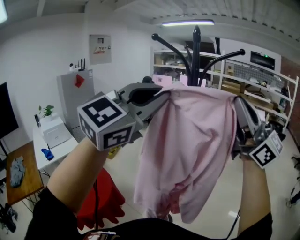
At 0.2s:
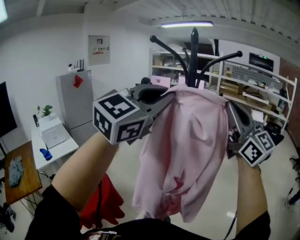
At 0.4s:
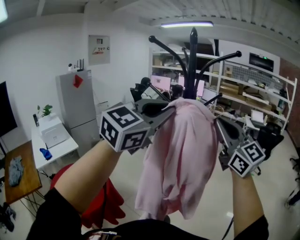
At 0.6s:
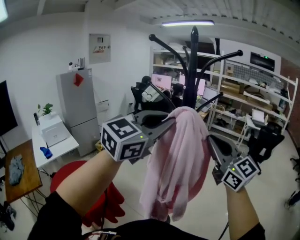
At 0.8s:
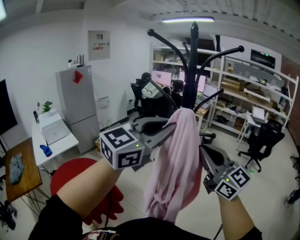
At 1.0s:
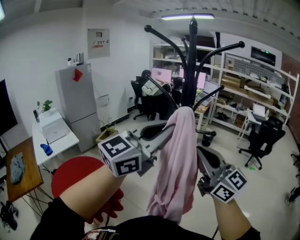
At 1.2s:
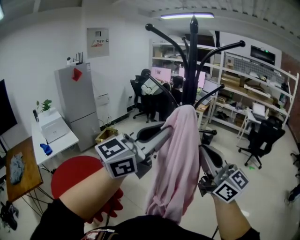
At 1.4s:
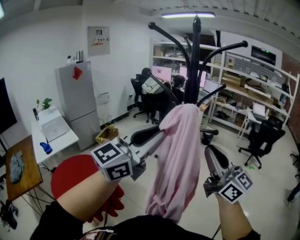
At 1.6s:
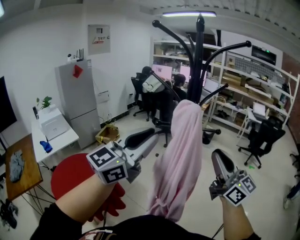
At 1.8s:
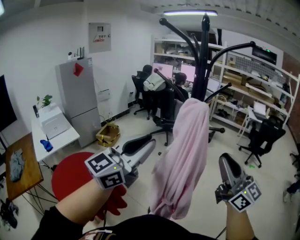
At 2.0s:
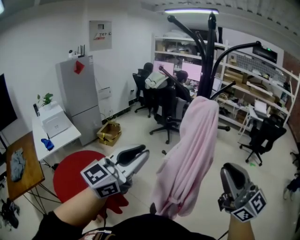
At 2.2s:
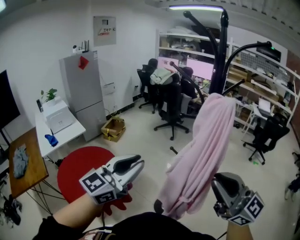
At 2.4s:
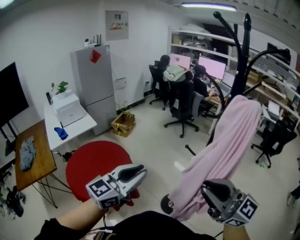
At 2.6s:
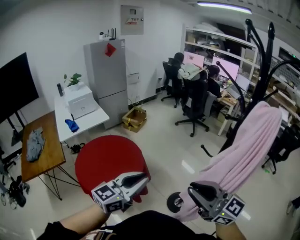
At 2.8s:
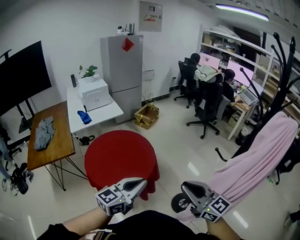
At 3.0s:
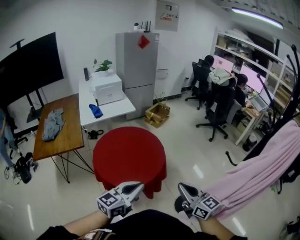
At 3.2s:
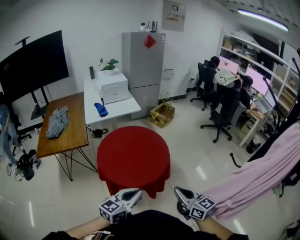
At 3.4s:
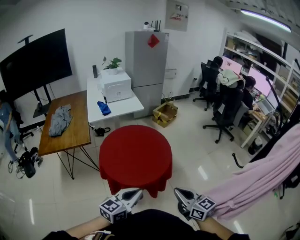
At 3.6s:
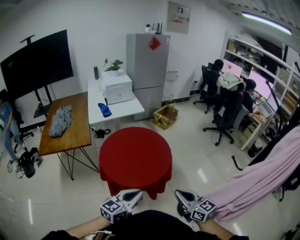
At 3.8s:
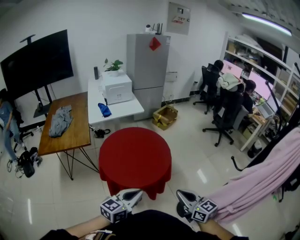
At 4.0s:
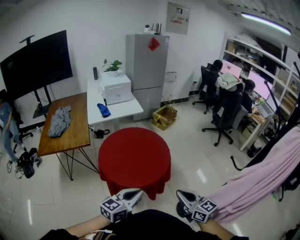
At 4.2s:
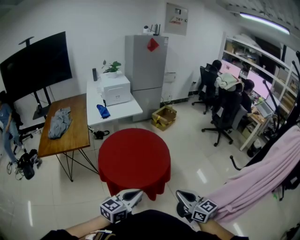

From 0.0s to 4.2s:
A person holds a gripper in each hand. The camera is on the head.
From 0.0s to 1.4s: Both grippers move downward, approximately 15 cm. The right gripper turns by some 20 degrees. The left gripper swivels about 30 degrees.
From 1.4s to 2.8s: The left gripper changes place by some 40 cm, and swivels approximately 40 degrees; the right gripper moves approximately 40 cm, and rotates roughly 40 degrees.
From 2.8s to 4.2s: The grippers both shift downward and to the left by approximately 10 cm.

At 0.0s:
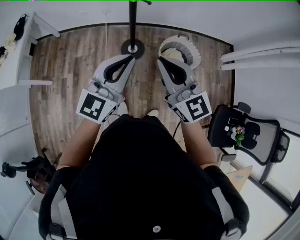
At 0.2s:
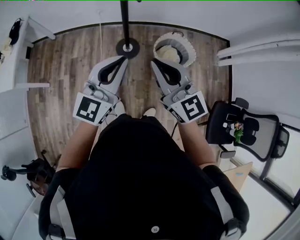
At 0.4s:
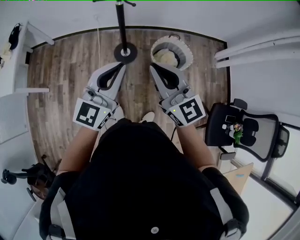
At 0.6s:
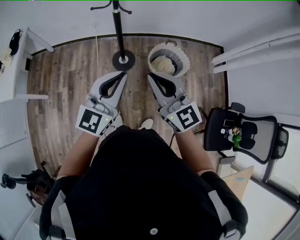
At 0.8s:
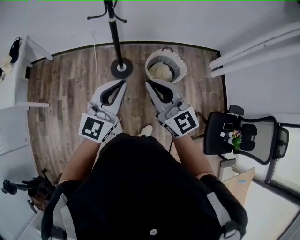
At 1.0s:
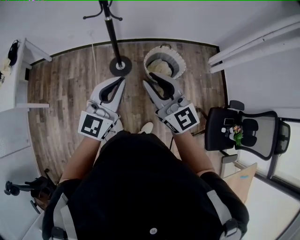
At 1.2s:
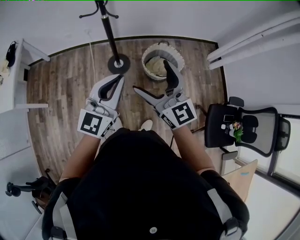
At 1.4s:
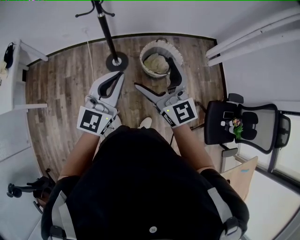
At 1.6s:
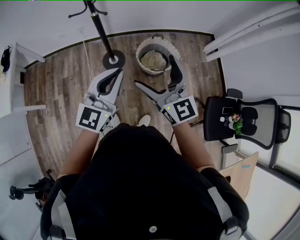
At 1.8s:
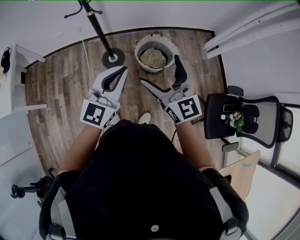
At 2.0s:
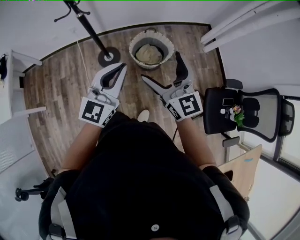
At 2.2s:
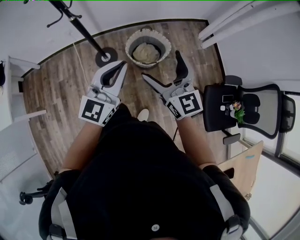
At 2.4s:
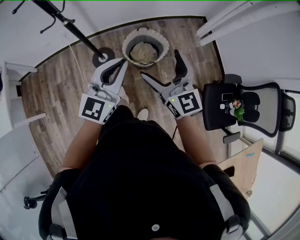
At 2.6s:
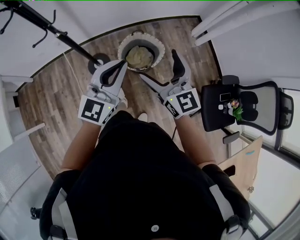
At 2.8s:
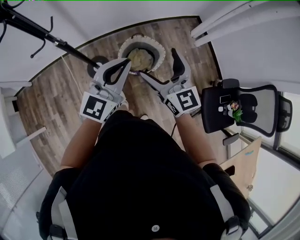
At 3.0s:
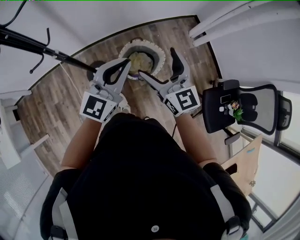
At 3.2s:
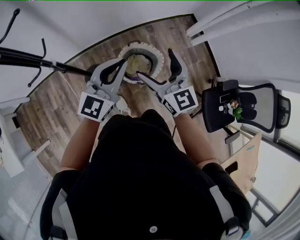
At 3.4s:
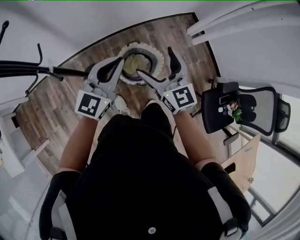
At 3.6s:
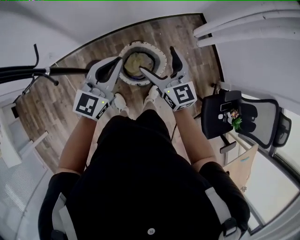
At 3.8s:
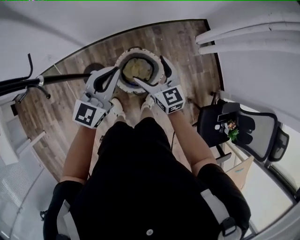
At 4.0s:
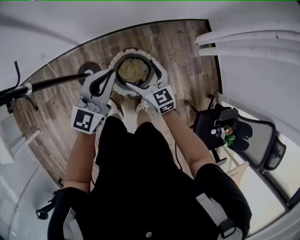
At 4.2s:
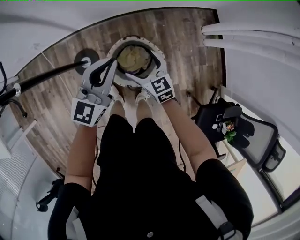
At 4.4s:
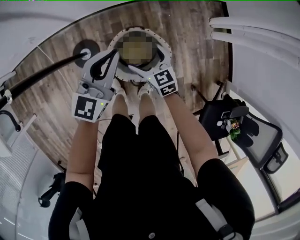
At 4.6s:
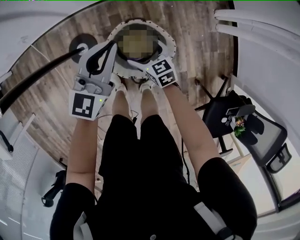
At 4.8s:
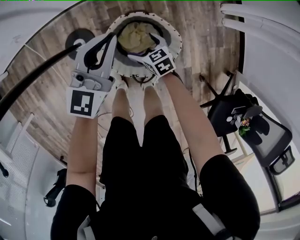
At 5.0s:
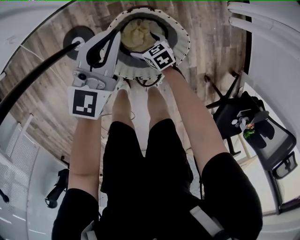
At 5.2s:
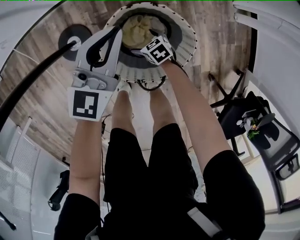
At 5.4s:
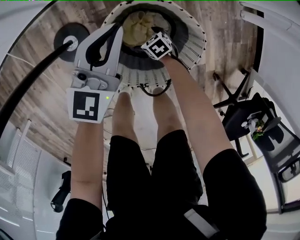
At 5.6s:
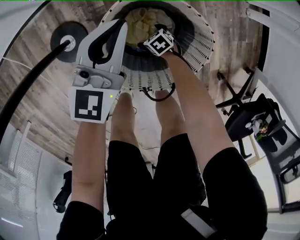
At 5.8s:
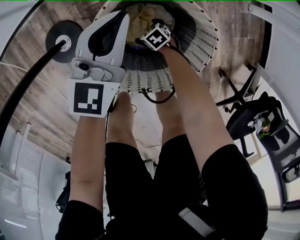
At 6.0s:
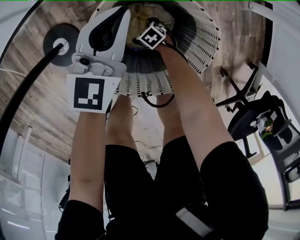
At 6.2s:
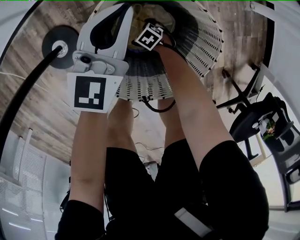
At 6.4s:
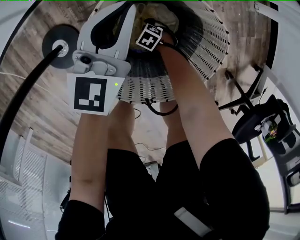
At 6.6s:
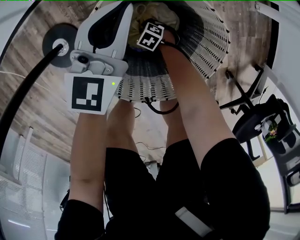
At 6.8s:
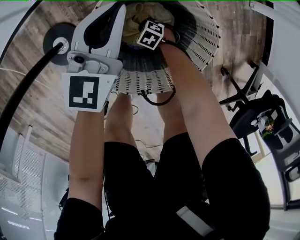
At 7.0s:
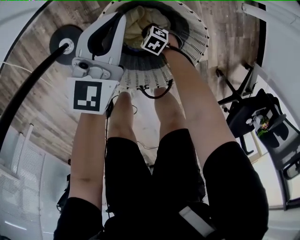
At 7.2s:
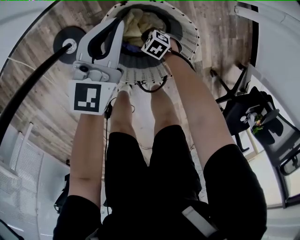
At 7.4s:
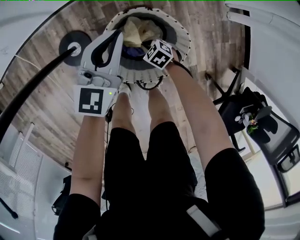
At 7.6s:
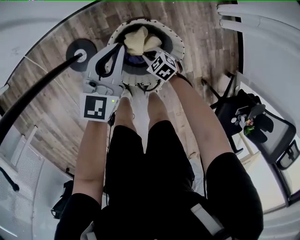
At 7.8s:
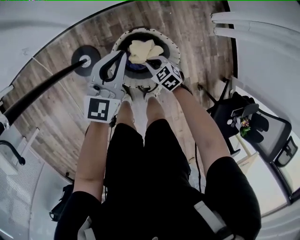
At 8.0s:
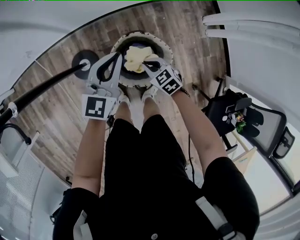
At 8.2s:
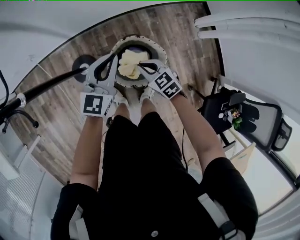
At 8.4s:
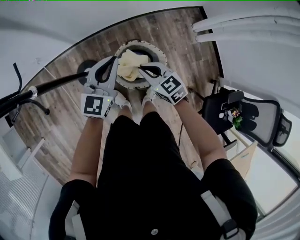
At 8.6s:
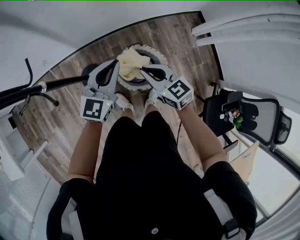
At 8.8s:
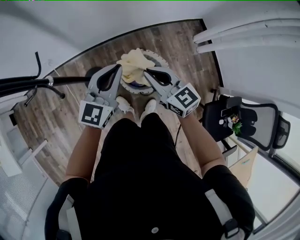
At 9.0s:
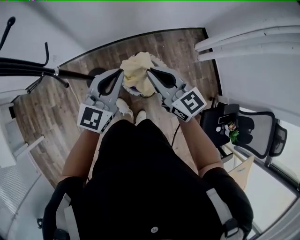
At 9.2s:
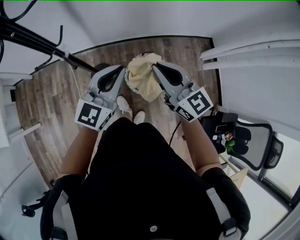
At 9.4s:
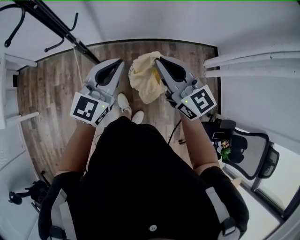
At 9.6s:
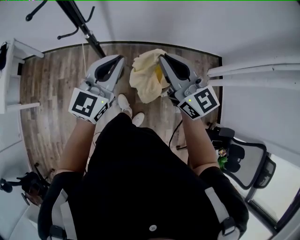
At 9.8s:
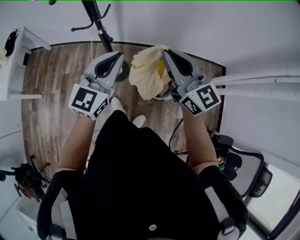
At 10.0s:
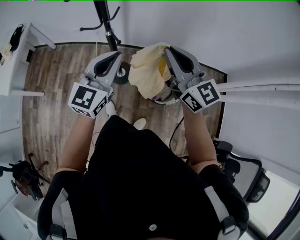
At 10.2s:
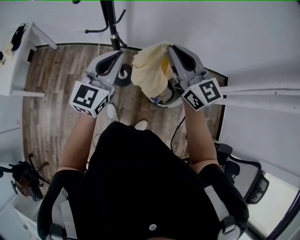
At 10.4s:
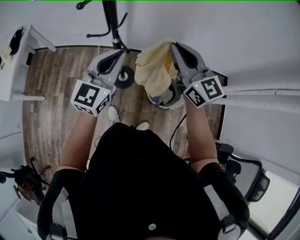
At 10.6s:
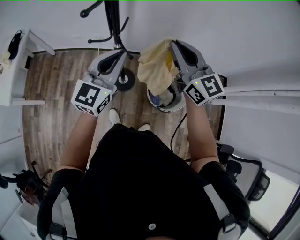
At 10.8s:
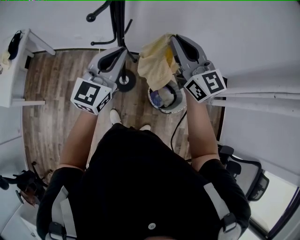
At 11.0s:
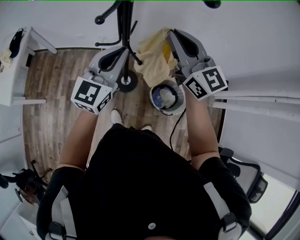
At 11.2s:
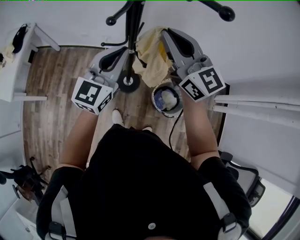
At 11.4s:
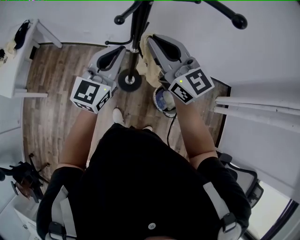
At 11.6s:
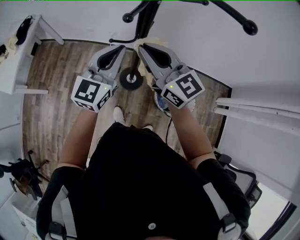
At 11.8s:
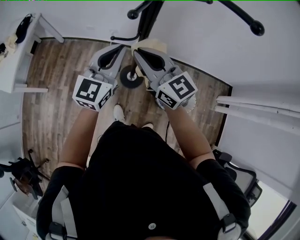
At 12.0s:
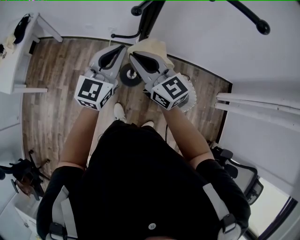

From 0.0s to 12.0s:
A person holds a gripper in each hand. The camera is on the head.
From 0.0s to 1.6s: The grippers both shift to the right by roughly 15 cm. The right gripper opens its fingers.
From 1.6s to 3.0s: The right gripper is displaced forward by approximately 25 cm. The left gripper moves forward and to the right, some 30 cm.
From 3.0s to 4.4s: Both grippers move downward and forward, roughly 40 cm. The right gripper turns by about 40 degrees.
From 4.4s to 6.0s: Both grippers move downward, about 50 cm. The right gripper tilts its fingers roughly 30 degrees downward.
From 6.0s to 7.6s: Both grippers travel together upward, about 30 cm. The right gripper closes its fingers.
From 7.6s to 9.0s: The left gripper moves upward, approximately 40 cm. Meanwhile the right gripper goes roughly 70 cm upward, and angles its fingers upward, by some 50 degrees.
From 9.0s to 10.4s: The two grippers go roughly 25 cm to the left and upward. The left gripper rotates about 30 degrees.
From 10.4s to 12.0s: The right gripper travels to the left by about 25 cm, while the left gripper is displaced to the left and forward by roughly 15 cm.

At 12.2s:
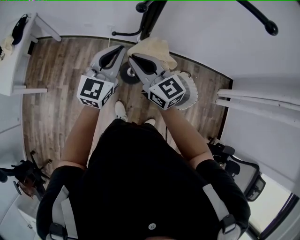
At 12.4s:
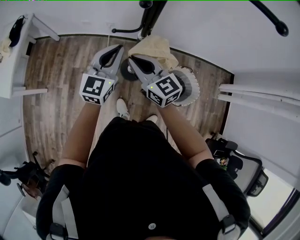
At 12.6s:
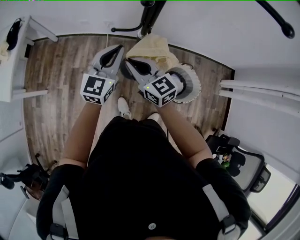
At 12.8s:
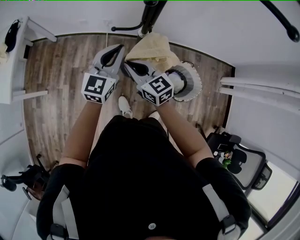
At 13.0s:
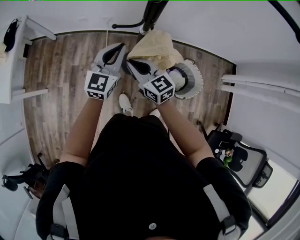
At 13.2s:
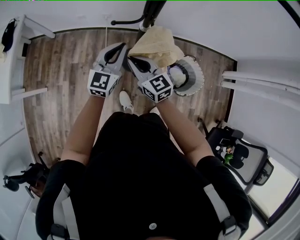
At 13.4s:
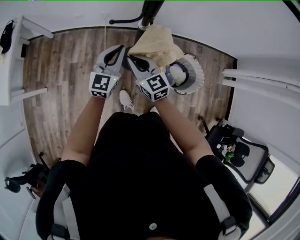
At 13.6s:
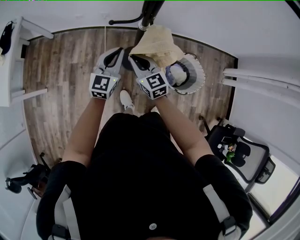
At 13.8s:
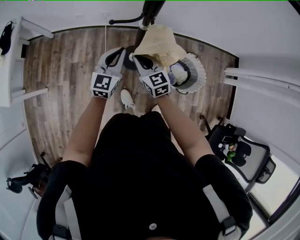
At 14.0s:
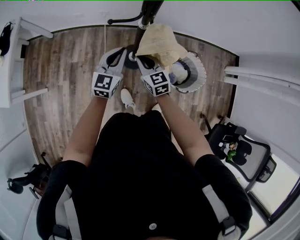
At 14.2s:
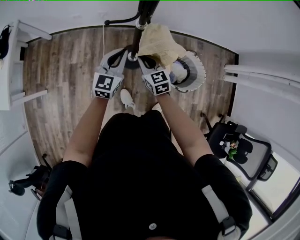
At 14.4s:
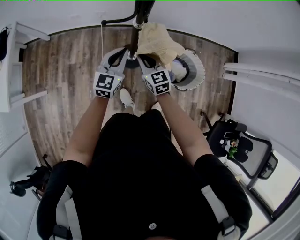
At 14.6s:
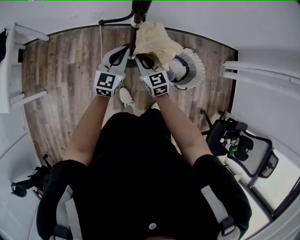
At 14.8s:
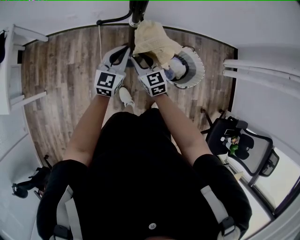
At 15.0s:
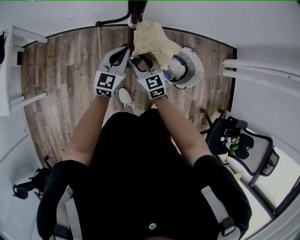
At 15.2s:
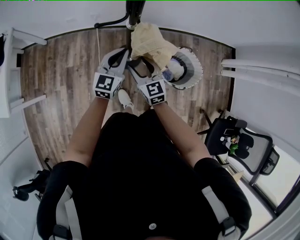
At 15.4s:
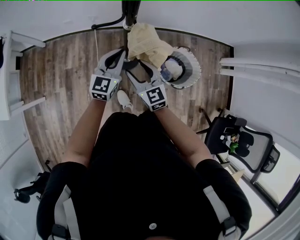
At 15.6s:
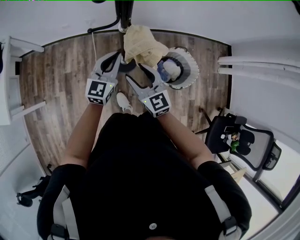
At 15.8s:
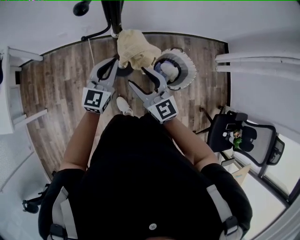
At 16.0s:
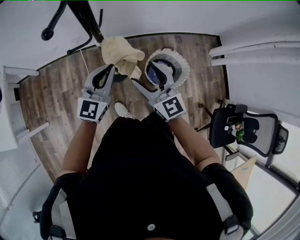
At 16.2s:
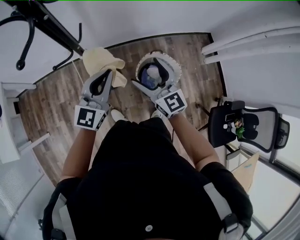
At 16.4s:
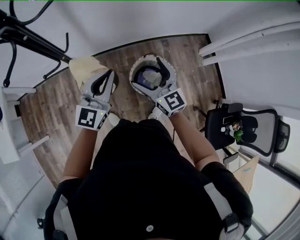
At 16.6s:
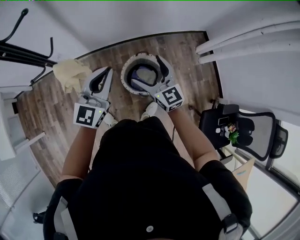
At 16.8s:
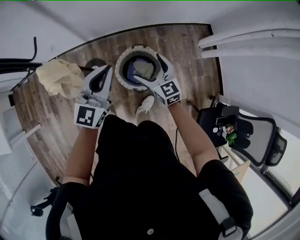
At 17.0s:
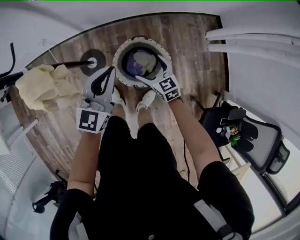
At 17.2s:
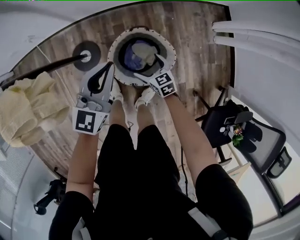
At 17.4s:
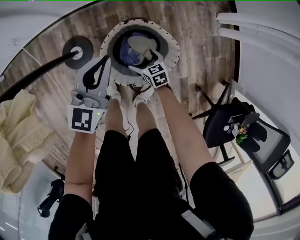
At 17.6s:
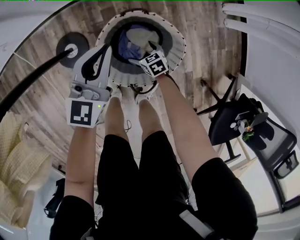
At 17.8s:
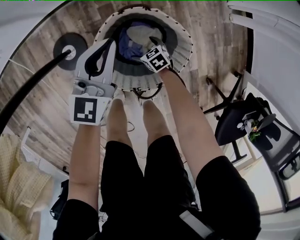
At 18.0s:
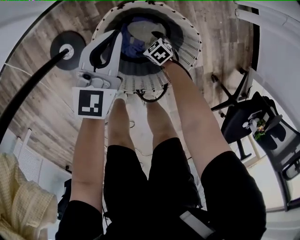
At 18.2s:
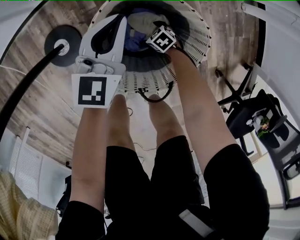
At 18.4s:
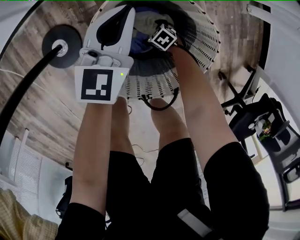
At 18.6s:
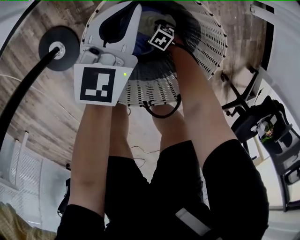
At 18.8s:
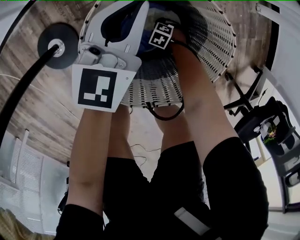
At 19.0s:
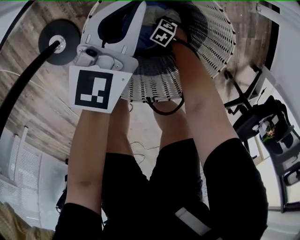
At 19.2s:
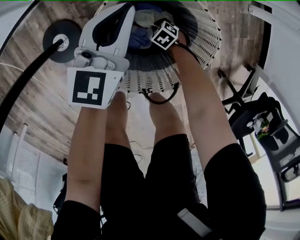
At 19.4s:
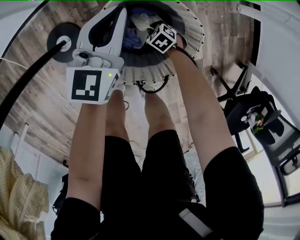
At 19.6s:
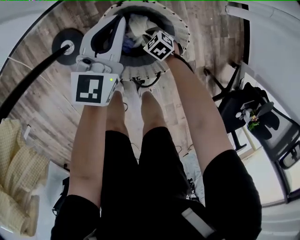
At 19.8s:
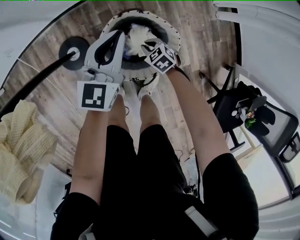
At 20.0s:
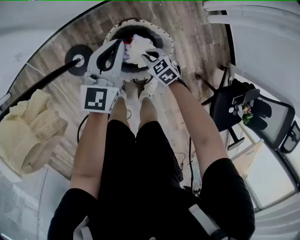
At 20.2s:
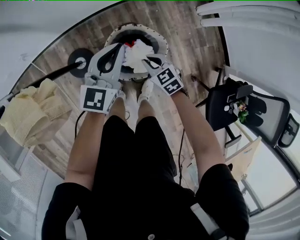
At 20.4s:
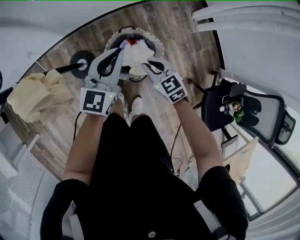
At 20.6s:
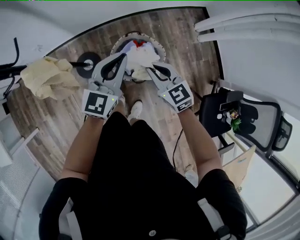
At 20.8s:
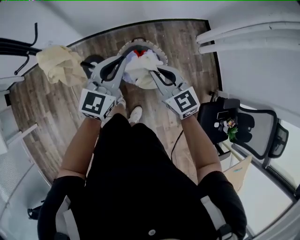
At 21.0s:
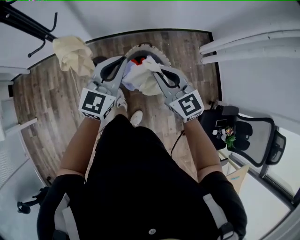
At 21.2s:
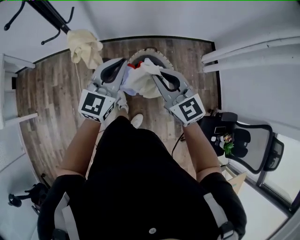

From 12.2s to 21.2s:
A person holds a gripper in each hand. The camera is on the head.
From 12.2s to 13.8s: Both grippers travel together downward, roughly 20 cm. The right gripper changes its angle by about 20 degrees.
From 13.8s to 15.2s: The left gripper is displaced to the right by roughly 5 cm, while the right gripper opens its fingers.
From 15.2s to 16.6s: The right gripper moves to the right, approximately 40 cm, and opens its fingers; the left gripper shifts about 35 cm to the right and upward.
From 16.6s to 18.2s: Both grippers travel together downward, roughly 80 cm. The right gripper tips its fingers downward by about 60 degrees.
From 18.2s to 19.8s: The grippers both shift upward by some 25 cm. The right gripper closes its fingers.
From 19.8s to 21.2s: The left gripper moves upward and backward, some 50 cm. The right gripper is displaced upward by some 70 cm, and angles its fingers upward, by some 50 degrees.
